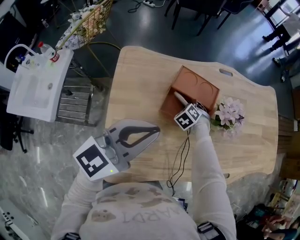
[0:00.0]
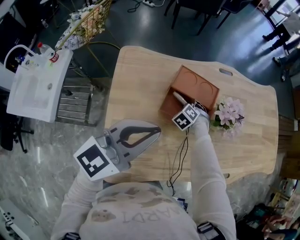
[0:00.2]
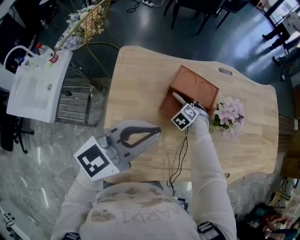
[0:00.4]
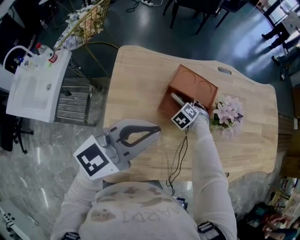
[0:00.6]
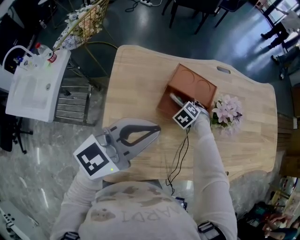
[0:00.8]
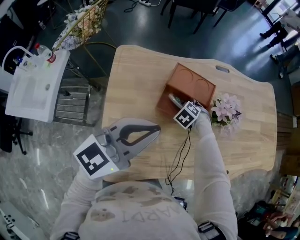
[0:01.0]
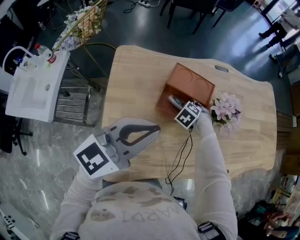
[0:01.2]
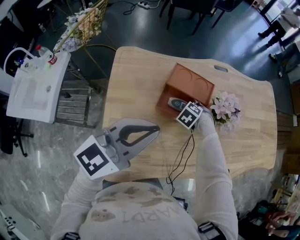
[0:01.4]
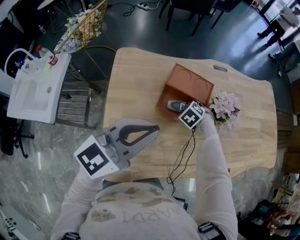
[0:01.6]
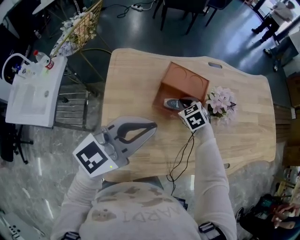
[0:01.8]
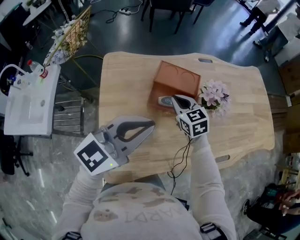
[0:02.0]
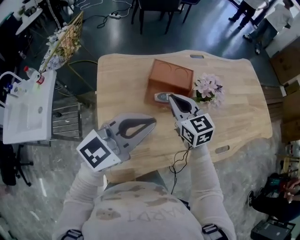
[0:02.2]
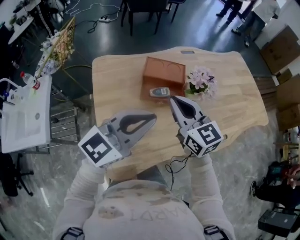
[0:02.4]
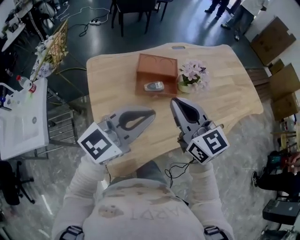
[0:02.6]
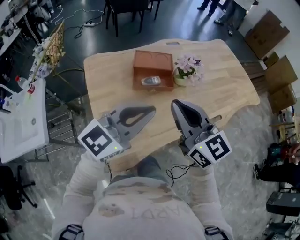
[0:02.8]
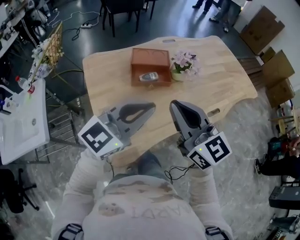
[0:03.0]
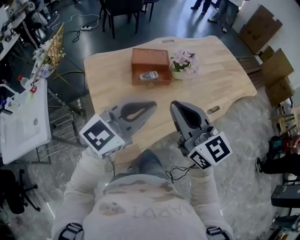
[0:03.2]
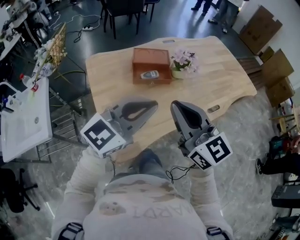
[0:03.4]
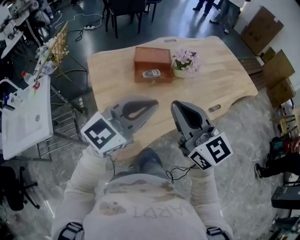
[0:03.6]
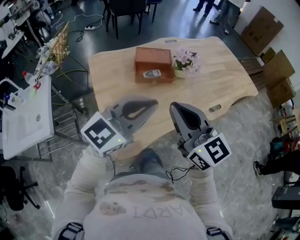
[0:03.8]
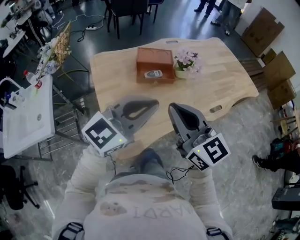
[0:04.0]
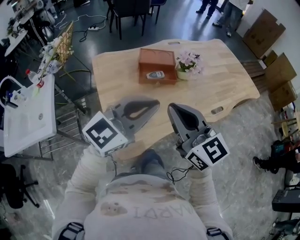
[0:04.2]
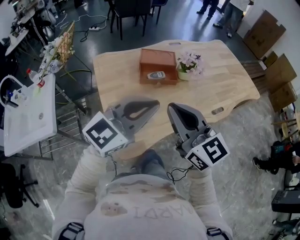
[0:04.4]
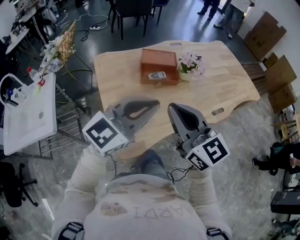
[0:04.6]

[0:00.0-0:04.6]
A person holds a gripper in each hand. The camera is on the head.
0:00.0 to 0:01.6: The right gripper changes place by about 5 cm.
0:01.6 to 0:03.0: The right gripper moves upward and backward, some 50 cm, points its fingers roughly 70 degrees further upward, and closes. Meanwhile the left gripper is displaced backward by about 15 cm, and rotates about 20 degrees.
0:03.0 to 0:04.6: Both grippers travel together backward, approximately 5 cm.

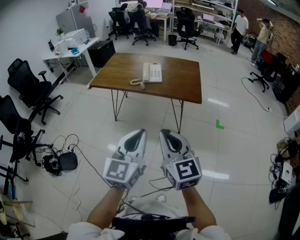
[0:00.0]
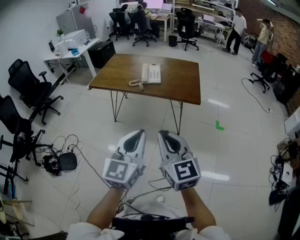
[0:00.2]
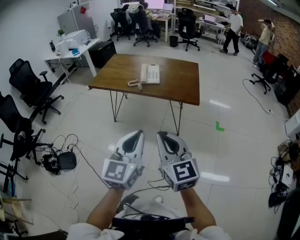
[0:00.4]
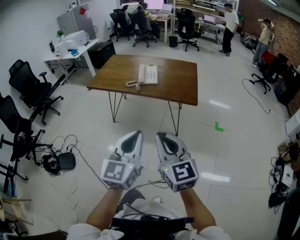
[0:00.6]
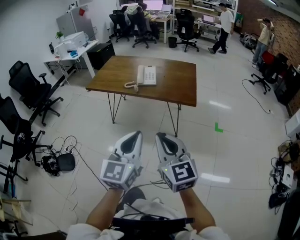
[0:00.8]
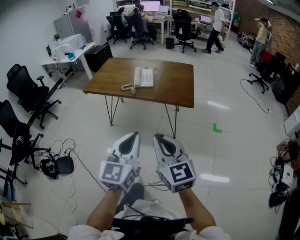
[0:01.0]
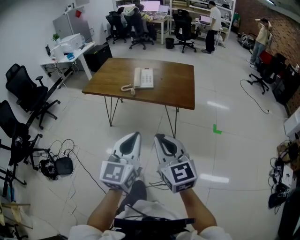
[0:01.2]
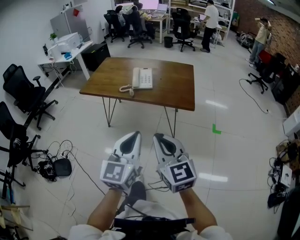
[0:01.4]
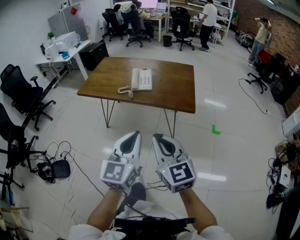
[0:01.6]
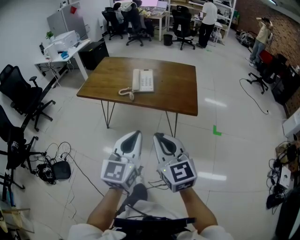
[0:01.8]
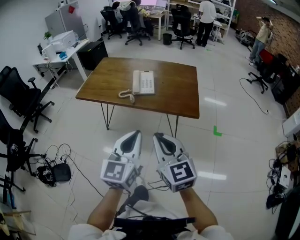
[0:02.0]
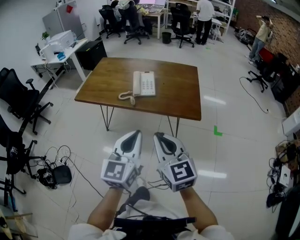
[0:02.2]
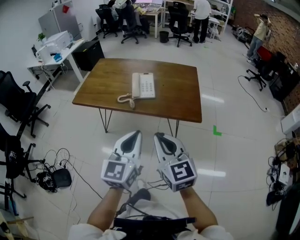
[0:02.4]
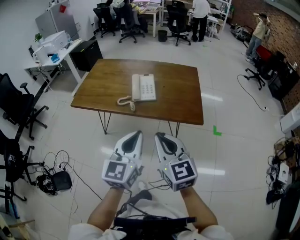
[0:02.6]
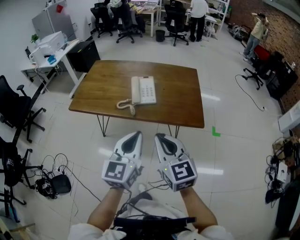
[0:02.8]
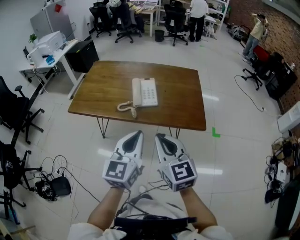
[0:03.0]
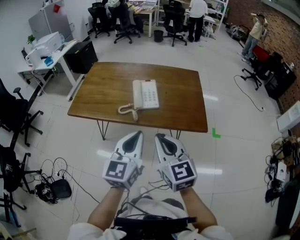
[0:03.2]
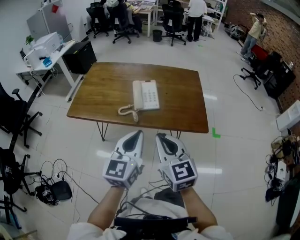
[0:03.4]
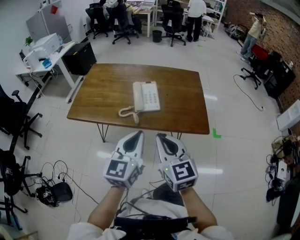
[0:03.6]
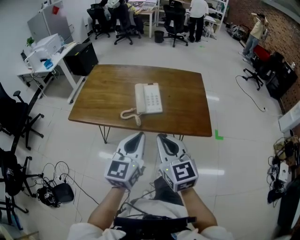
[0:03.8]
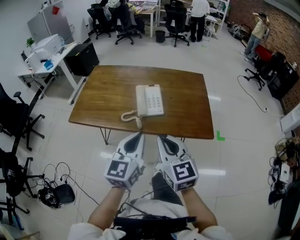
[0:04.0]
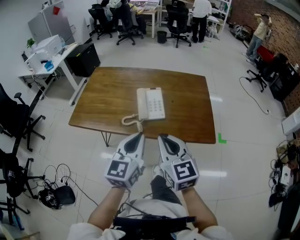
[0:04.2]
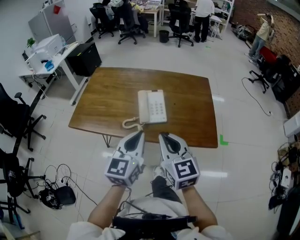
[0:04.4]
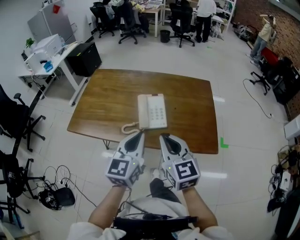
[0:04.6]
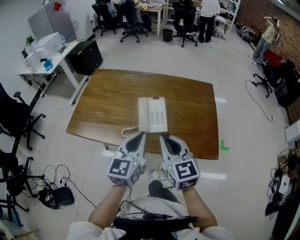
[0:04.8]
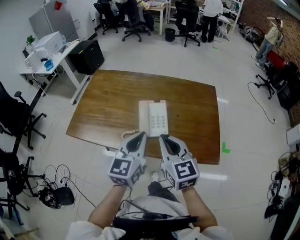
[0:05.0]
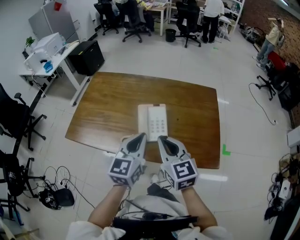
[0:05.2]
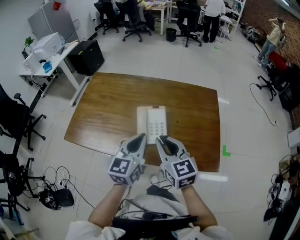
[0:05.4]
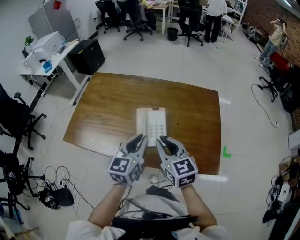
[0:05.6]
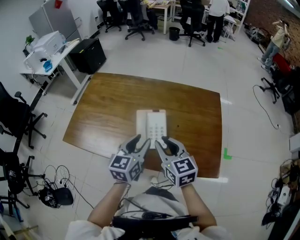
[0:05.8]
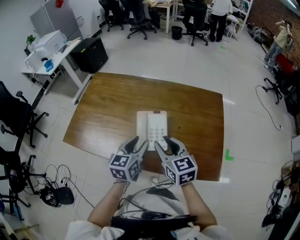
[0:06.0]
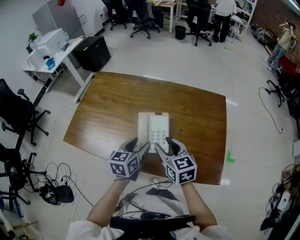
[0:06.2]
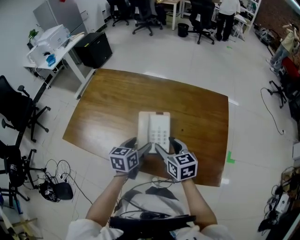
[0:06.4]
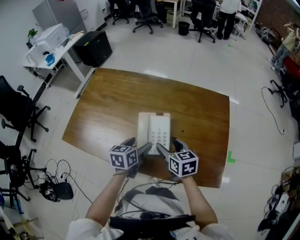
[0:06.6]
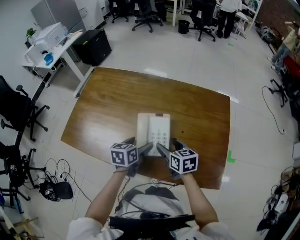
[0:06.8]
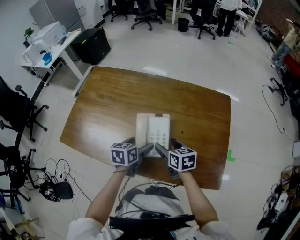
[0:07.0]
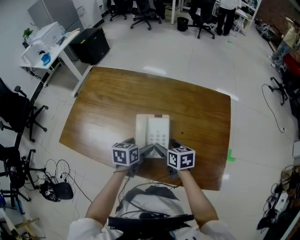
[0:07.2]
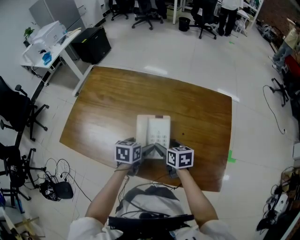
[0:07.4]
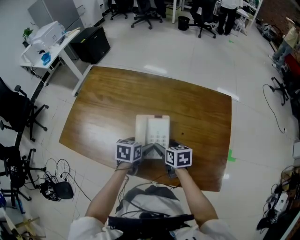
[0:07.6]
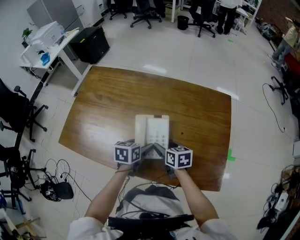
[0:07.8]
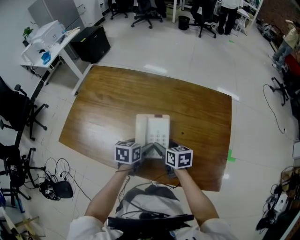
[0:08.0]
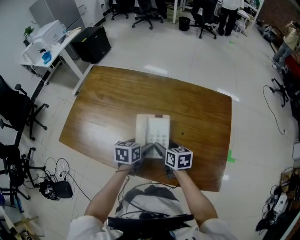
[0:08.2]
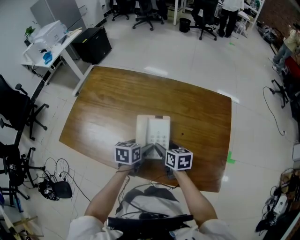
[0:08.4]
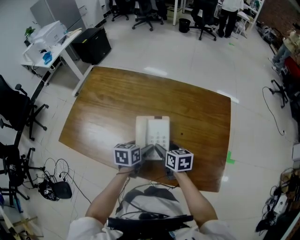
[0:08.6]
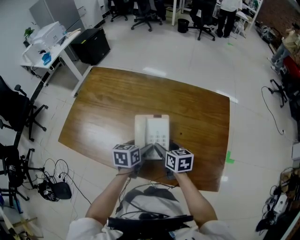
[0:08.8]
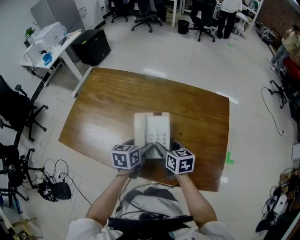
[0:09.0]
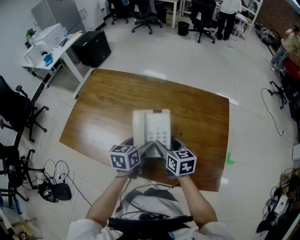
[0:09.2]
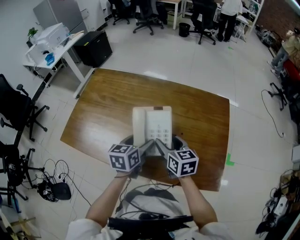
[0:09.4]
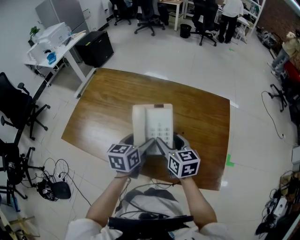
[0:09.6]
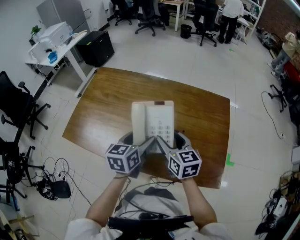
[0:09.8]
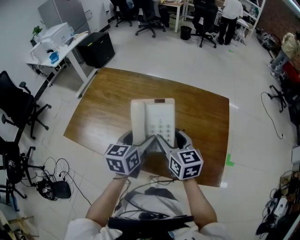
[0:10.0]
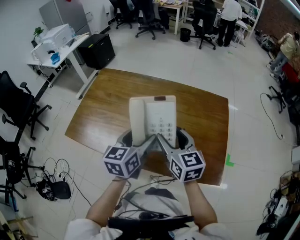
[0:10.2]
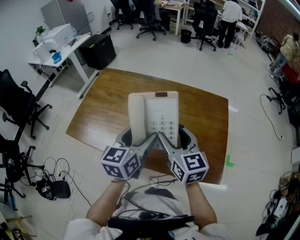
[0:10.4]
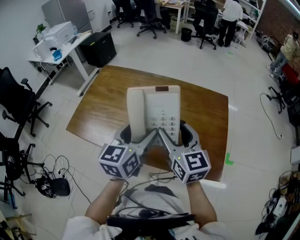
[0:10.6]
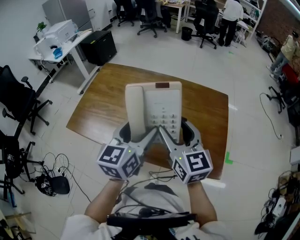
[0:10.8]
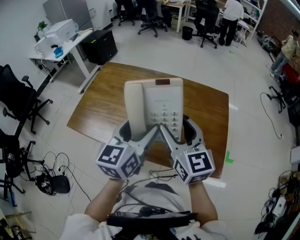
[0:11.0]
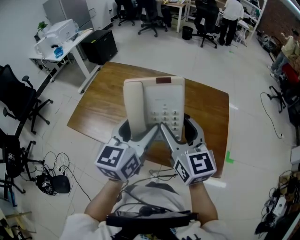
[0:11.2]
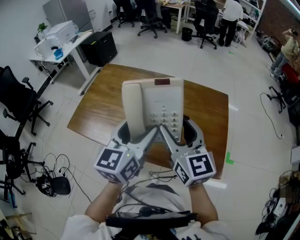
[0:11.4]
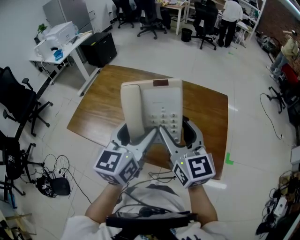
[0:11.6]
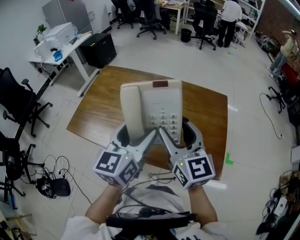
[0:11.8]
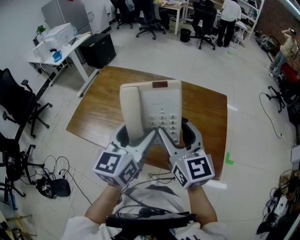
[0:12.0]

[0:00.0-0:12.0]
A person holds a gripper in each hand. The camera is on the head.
0:00.0 to 0:01.6: Both grippers move forward, about 10 cm.
0:01.6 to 0:03.0: The two grippers go about 20 cm forward.
0:03.0 to 0:04.4: The two grippers go approximately 15 cm forward.
0:04.4 to 0:06.0: The two grippers go approximately 20 cm forward and downward. The right gripper opens its fingers. The left gripper opens.
0:06.0 to 0:07.6: The left gripper moves downward and forward, roughly 15 cm, rotates approximately 30 degrees, and opens. Meanwhile the right gripper shifts about 15 cm downward, changes its angle by approximately 30 degrees, and opens up.
0:07.6 to 0:09.0: The grippers stay close to where they were, moving slightly.
0:09.0 to 0:10.4: Both grippers move upward, about 20 cm. The right gripper swivels some 30 degrees. Meanwhile the left gripper turns by some 20 degrees.
0:10.4 to 0:12.0: Both grippers travel together upward, approximately 5 cm.

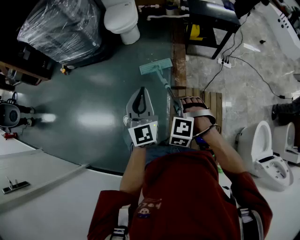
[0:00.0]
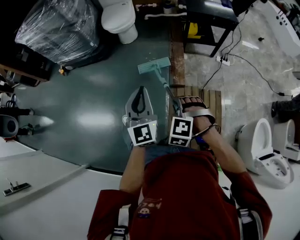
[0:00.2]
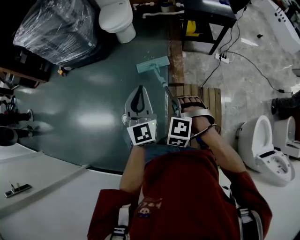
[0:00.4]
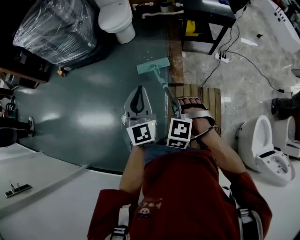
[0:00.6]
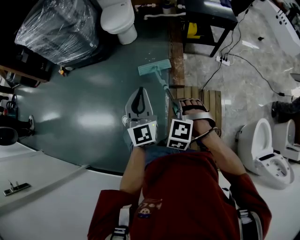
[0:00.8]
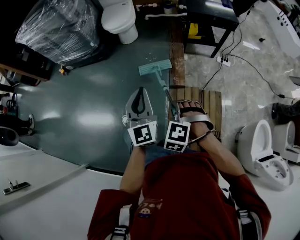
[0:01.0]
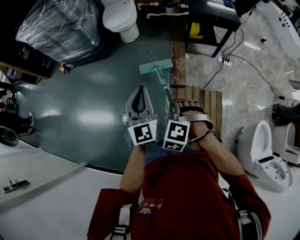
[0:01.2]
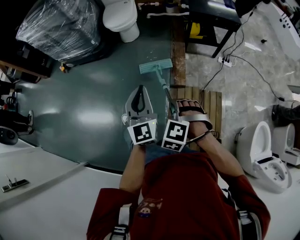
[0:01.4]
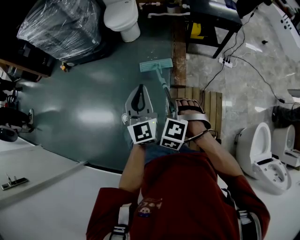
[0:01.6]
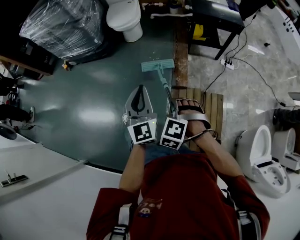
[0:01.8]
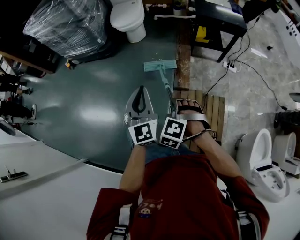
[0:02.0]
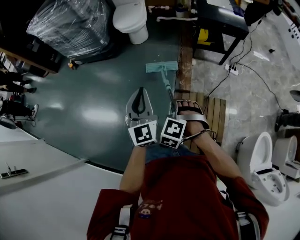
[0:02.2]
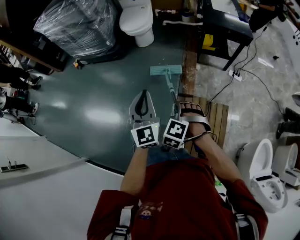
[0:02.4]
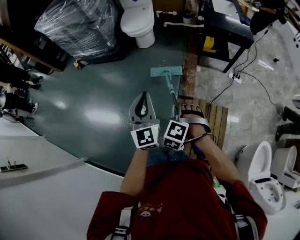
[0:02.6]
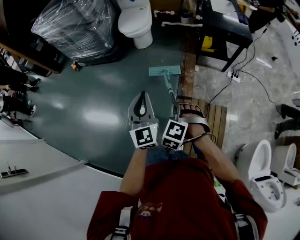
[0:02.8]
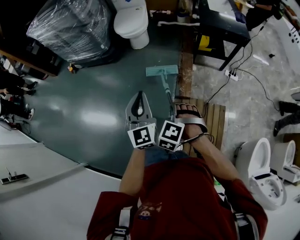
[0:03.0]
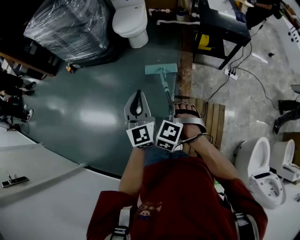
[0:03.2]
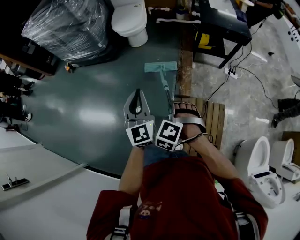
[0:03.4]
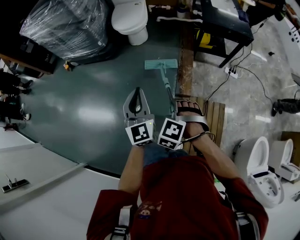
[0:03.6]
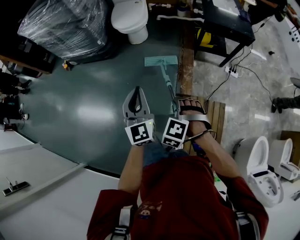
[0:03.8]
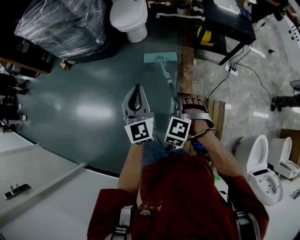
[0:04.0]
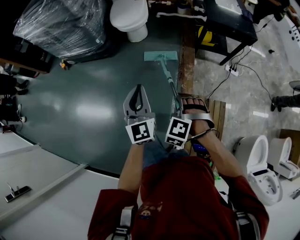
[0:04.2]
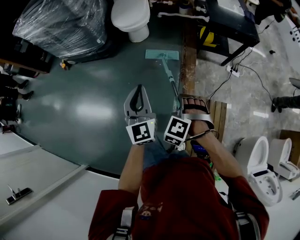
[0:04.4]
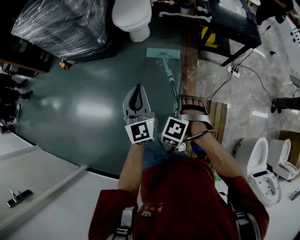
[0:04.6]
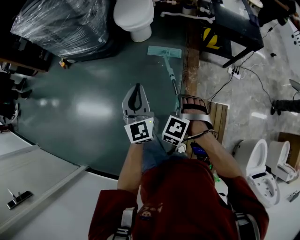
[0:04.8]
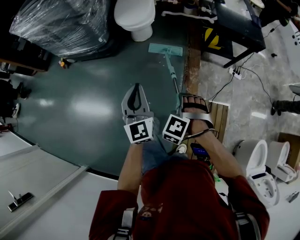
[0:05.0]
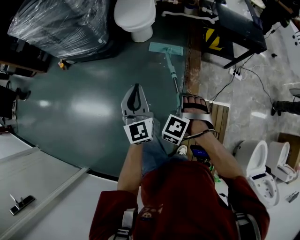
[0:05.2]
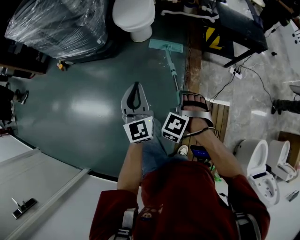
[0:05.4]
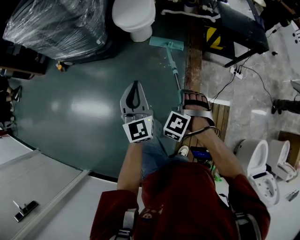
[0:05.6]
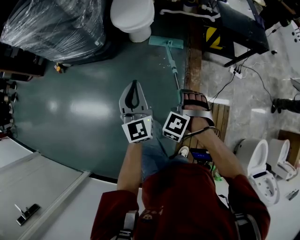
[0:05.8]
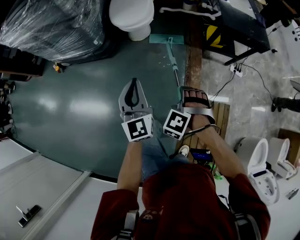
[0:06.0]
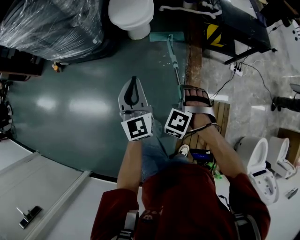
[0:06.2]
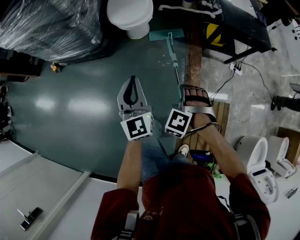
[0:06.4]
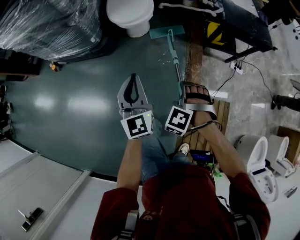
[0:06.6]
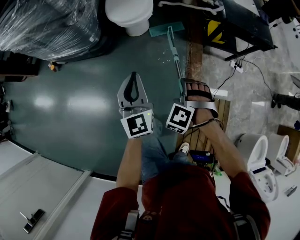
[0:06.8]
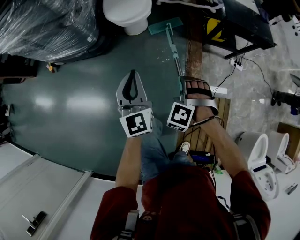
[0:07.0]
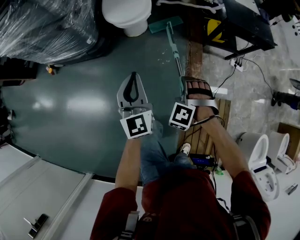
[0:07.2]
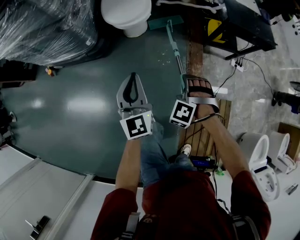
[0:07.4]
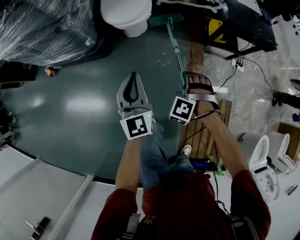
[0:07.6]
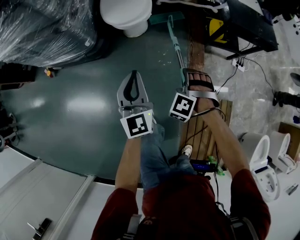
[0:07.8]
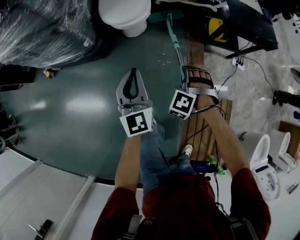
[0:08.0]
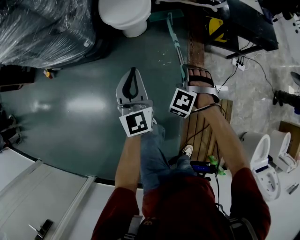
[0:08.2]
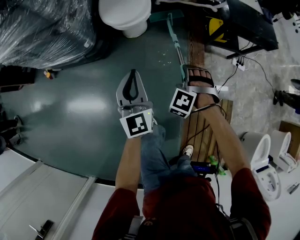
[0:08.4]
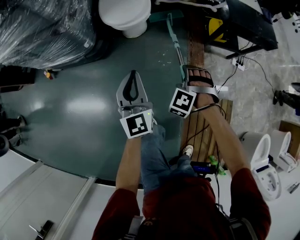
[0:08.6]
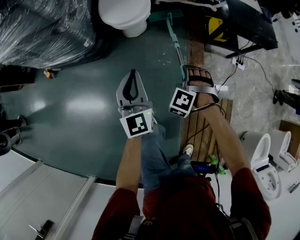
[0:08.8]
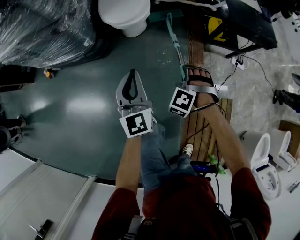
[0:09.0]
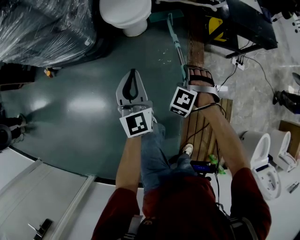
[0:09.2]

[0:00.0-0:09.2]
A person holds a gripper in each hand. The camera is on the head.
0:01.6 to 0:03.0: The left gripper ends up roughly 5 cm from where it was.
0:03.0 to 0:04.6: The left gripper changes place by roughly 20 cm.
0:04.6 to 0:06.2: The left gripper moves approximately 20 cm.
0:06.2 to 0:07.6: The left gripper ends up some 10 cm from where it was.
